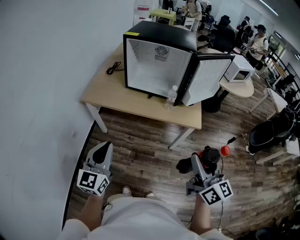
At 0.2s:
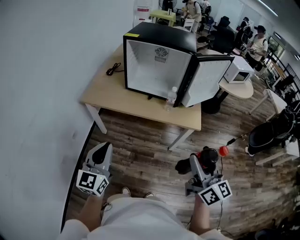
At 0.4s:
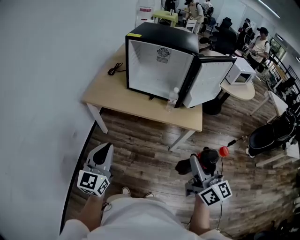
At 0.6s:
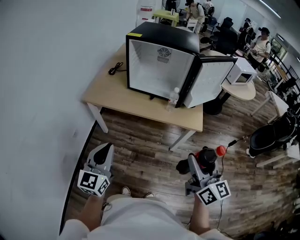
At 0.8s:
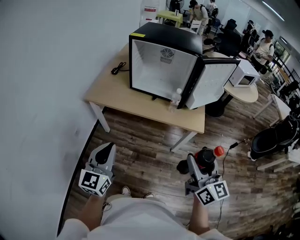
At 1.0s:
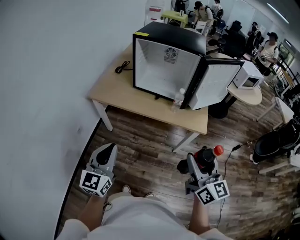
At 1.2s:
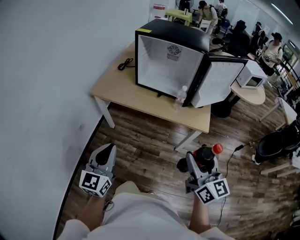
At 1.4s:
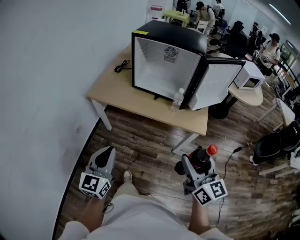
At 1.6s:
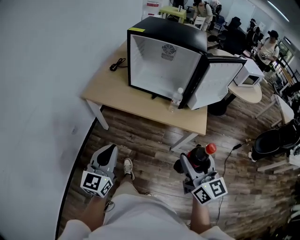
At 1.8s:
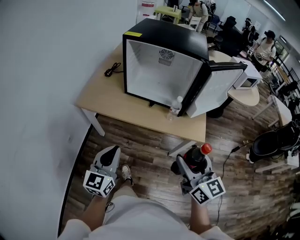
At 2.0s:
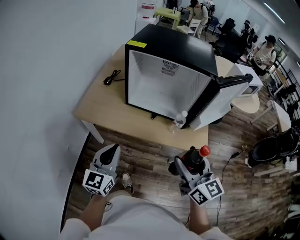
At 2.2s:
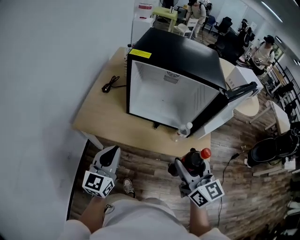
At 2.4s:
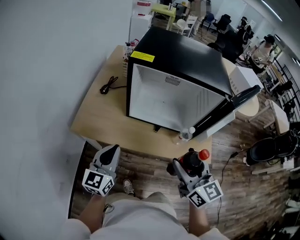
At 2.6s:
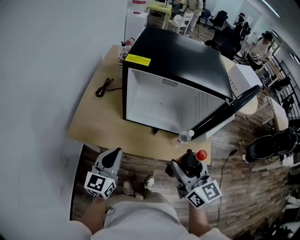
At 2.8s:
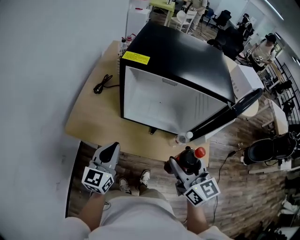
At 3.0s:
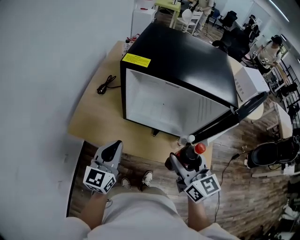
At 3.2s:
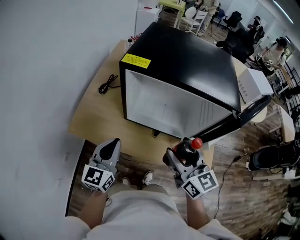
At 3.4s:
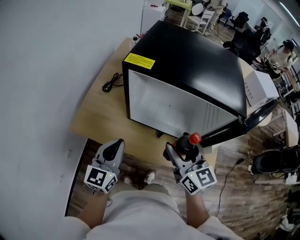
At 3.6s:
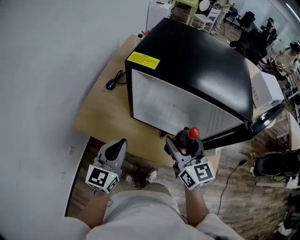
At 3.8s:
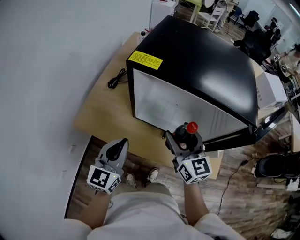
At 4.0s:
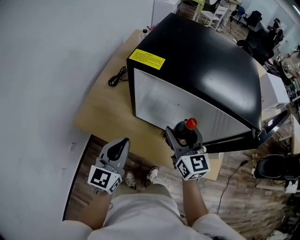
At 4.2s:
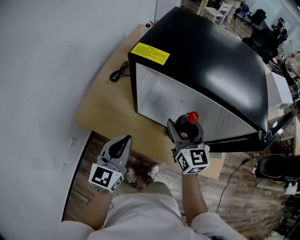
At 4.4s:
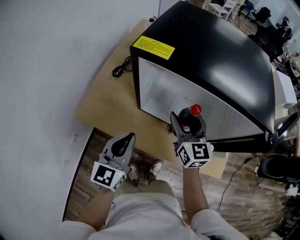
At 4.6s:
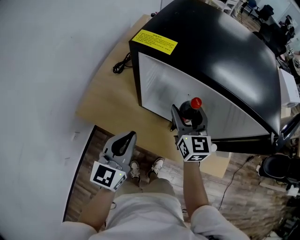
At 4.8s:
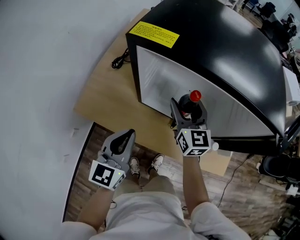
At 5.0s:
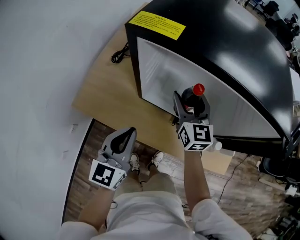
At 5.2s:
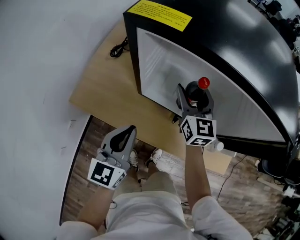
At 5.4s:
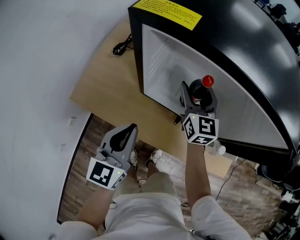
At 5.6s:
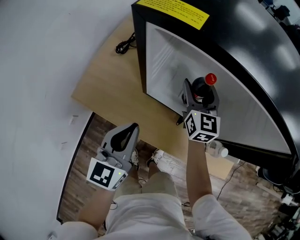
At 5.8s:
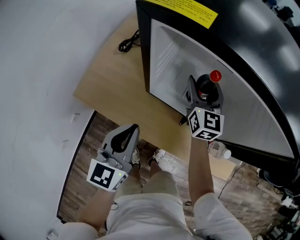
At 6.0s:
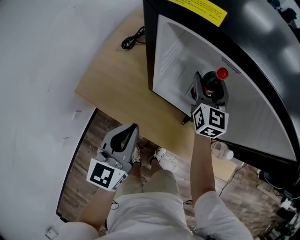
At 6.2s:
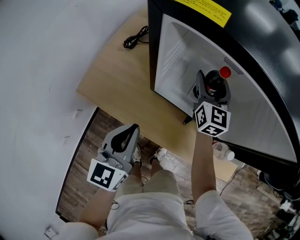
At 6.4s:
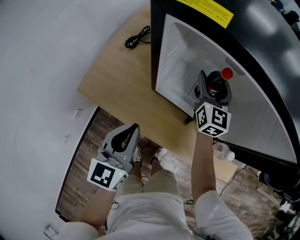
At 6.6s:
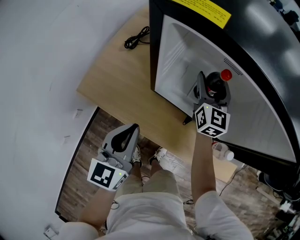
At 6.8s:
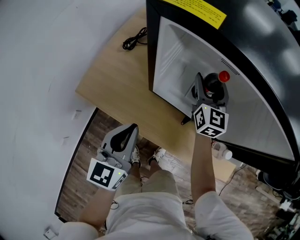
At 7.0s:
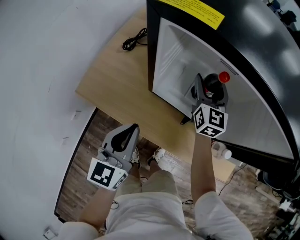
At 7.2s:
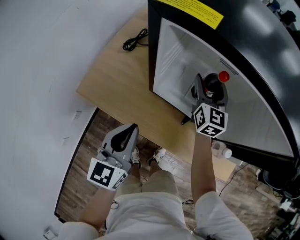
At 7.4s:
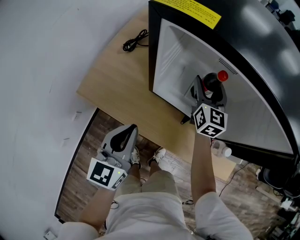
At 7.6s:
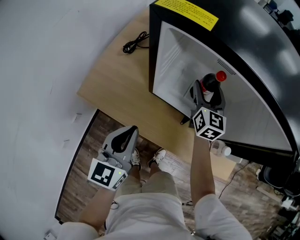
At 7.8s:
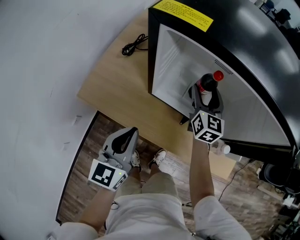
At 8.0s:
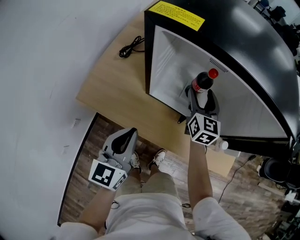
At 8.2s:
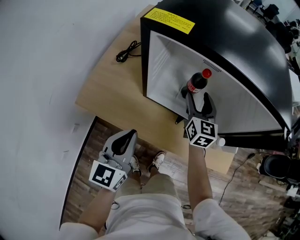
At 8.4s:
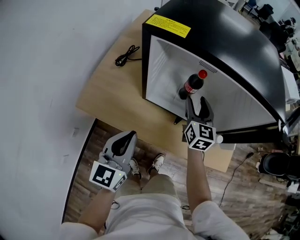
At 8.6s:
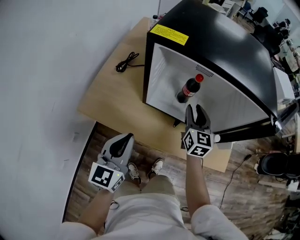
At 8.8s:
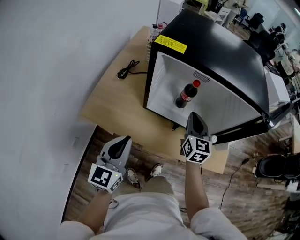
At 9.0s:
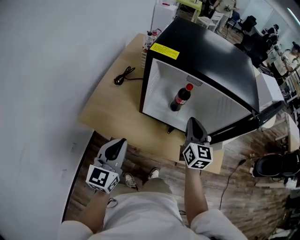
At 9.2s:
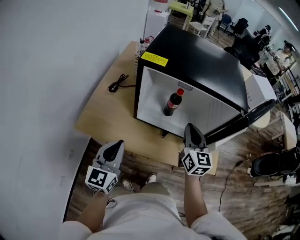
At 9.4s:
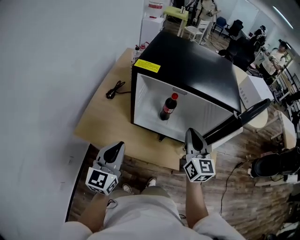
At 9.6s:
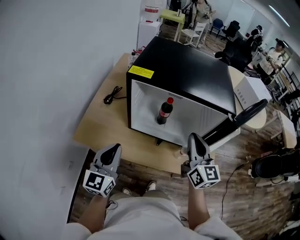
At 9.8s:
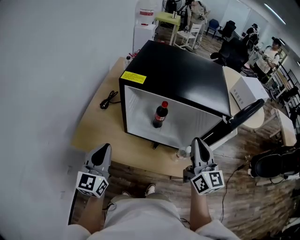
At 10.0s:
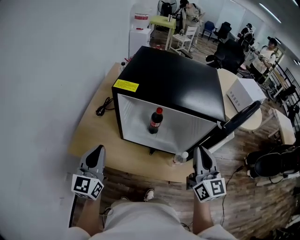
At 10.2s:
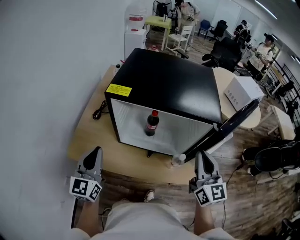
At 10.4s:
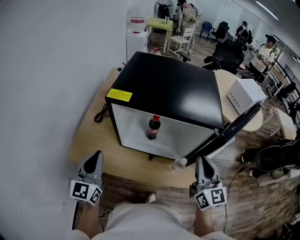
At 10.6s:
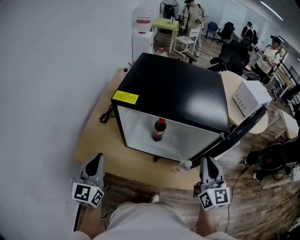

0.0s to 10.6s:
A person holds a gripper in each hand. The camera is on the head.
0.0s to 1.6s: The right gripper shifts approximately 5 cm forward. Meanwhile the left gripper moves some 5 cm.
1.6s to 3.0s: Both grippers move forward, approximately 35 cm.
3.0s to 4.6s: The right gripper travels forward and downward by some 20 cm.
4.6s to 6.0s: The left gripper moves downward, some 5 cm; the right gripper goes some 10 cm forward and downward.
6.0s to 7.6s: The grippers make only small movements.
7.6s to 9.0s: The left gripper is displaced backward and upward by approximately 10 cm, while the right gripper is displaced backward and upward by roughly 20 cm, and closes up.
9.0s to 10.6s: The right gripper goes roughly 20 cm to the right, upward and backward. Meanwhile the left gripper travels upward and forward by roughly 10 cm.

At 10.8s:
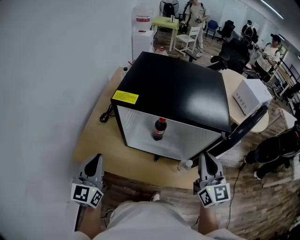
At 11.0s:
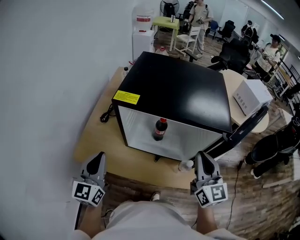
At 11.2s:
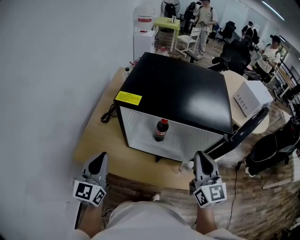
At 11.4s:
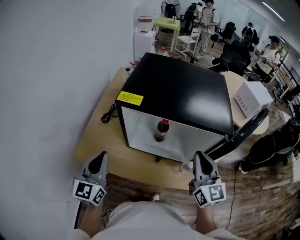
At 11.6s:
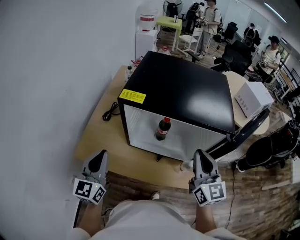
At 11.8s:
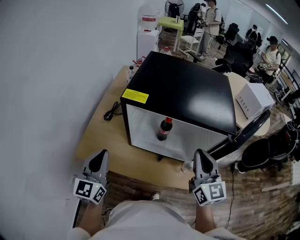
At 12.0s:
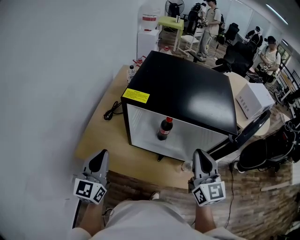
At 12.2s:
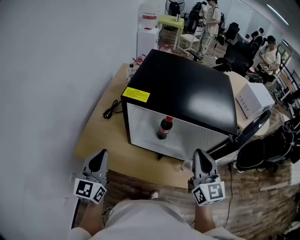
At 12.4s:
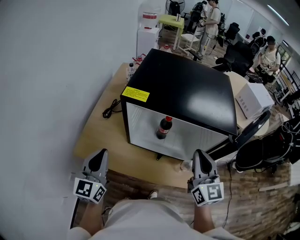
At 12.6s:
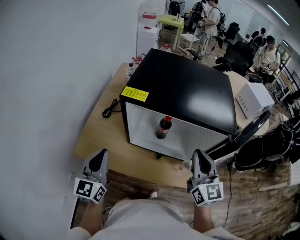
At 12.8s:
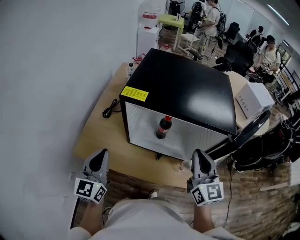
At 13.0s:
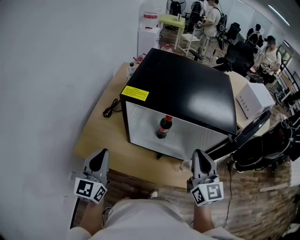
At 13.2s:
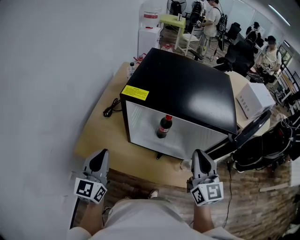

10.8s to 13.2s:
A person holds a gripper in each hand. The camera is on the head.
10.8s to 12.0s: The right gripper is displaced to the left by roughly 5 cm.
12.0s to 13.2s: Both grippers stay about where they are.

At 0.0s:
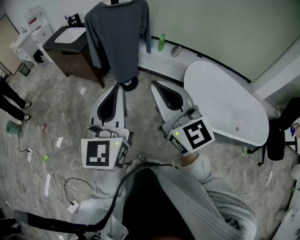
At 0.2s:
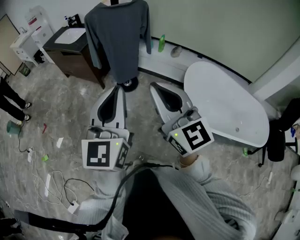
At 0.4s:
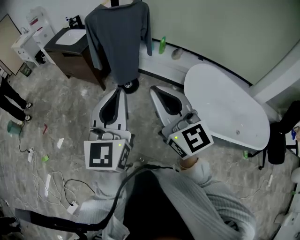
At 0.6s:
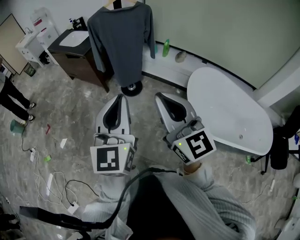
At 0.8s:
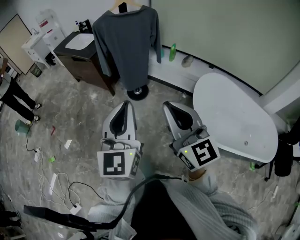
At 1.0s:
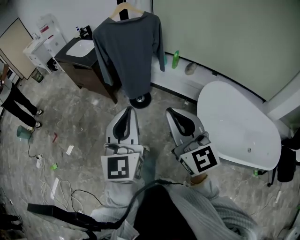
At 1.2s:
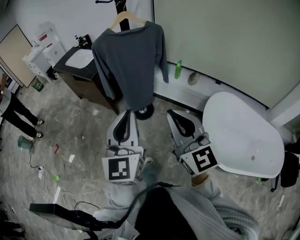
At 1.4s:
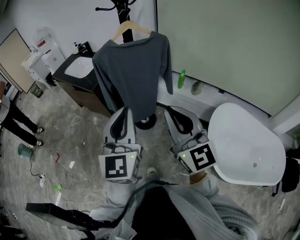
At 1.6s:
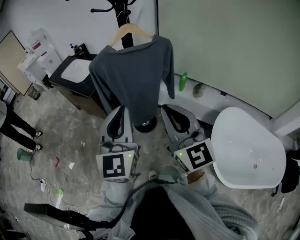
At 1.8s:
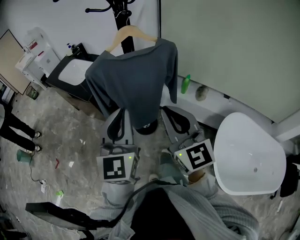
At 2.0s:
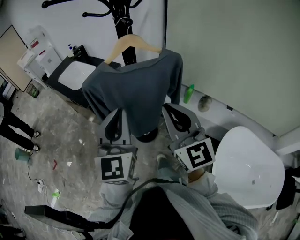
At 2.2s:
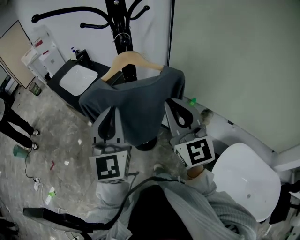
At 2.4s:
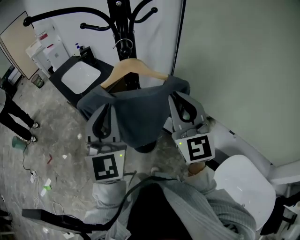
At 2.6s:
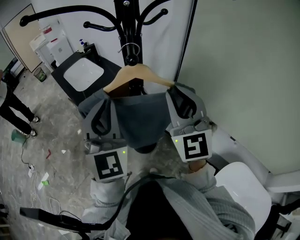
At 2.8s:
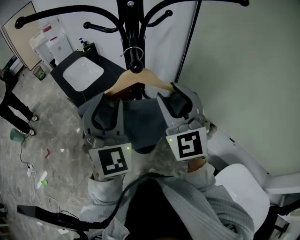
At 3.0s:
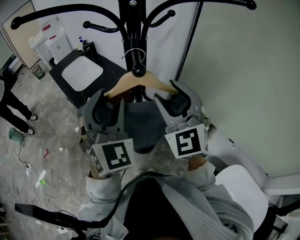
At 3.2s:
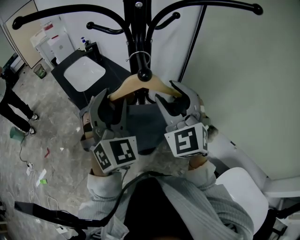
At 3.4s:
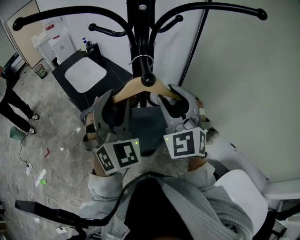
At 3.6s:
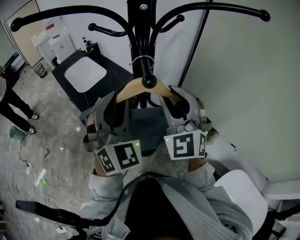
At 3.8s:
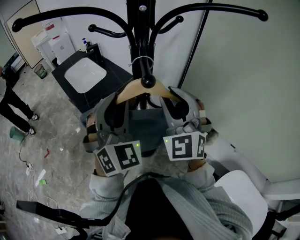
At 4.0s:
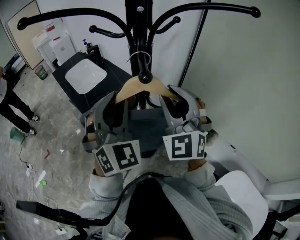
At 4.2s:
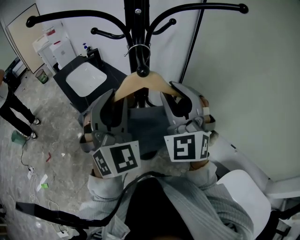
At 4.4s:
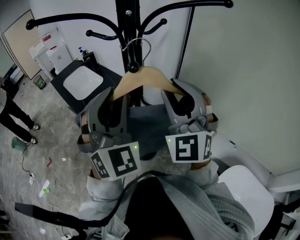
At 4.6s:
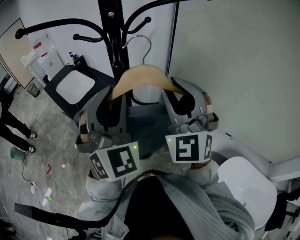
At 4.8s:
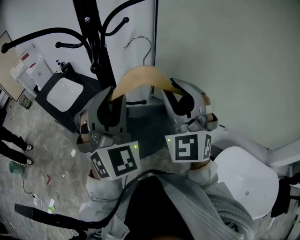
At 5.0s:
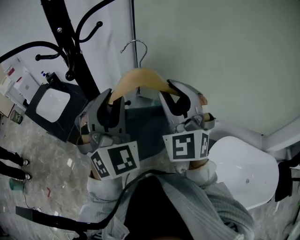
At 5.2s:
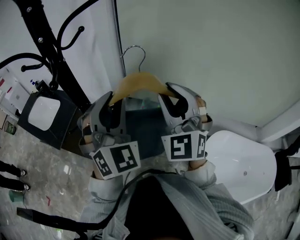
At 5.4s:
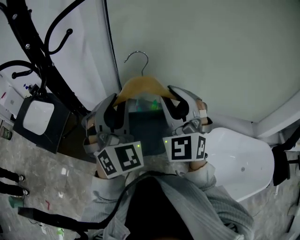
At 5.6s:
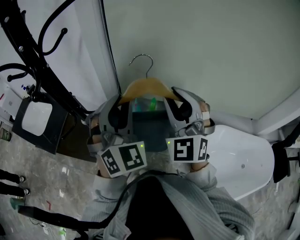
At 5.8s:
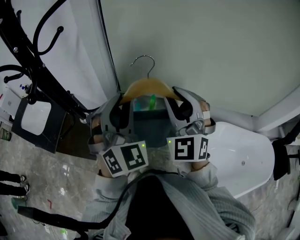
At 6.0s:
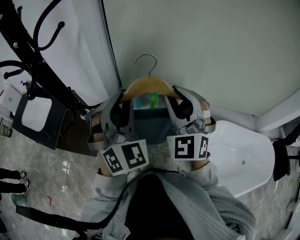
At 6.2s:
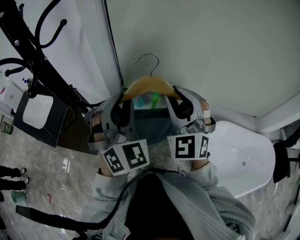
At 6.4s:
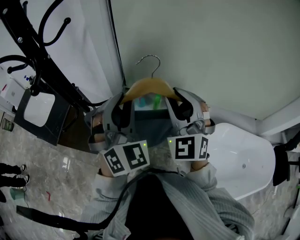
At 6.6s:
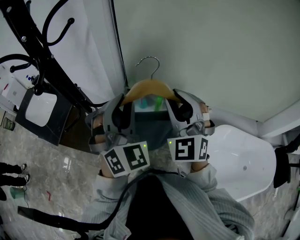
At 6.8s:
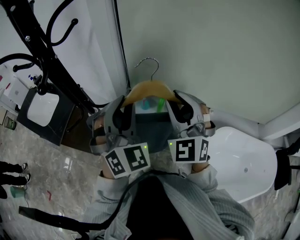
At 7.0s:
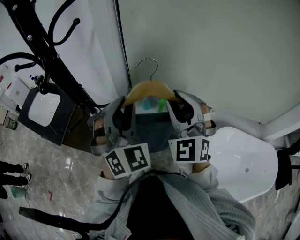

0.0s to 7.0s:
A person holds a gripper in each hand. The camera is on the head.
0.0s to 1.4s: Both grippers move forward, about 30 cm.
1.4s to 2.8s: The pair of grippers is taken forward, approximately 40 cm. The left gripper rotates roughly 40 degrees, and opens. The right gripper turns by approximately 30 degrees, and opens up.
2.8s to 4.2s: The grippers make only small movements.
4.2s to 5.6s: The right gripper shifts by about 25 cm, and turns by some 30 degrees. Meanwhile the left gripper changes place by about 25 cm, and turns by approximately 30 degrees.
5.6s to 7.0s: There are only small adjustments of the grippers.

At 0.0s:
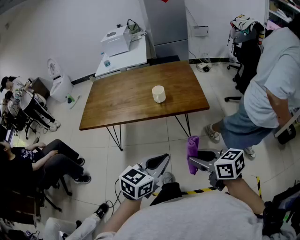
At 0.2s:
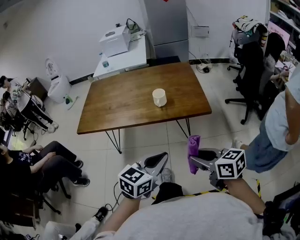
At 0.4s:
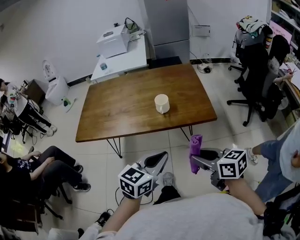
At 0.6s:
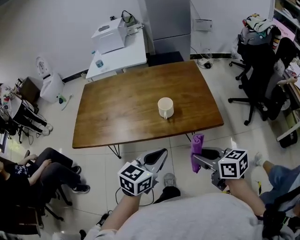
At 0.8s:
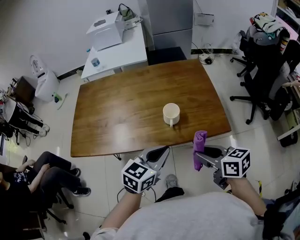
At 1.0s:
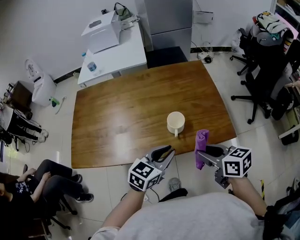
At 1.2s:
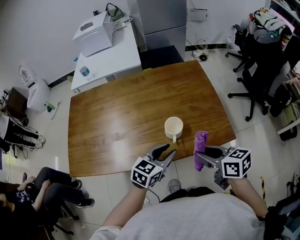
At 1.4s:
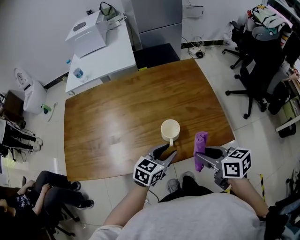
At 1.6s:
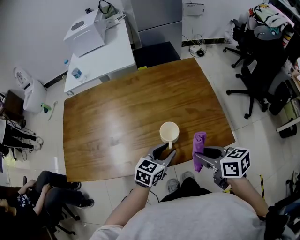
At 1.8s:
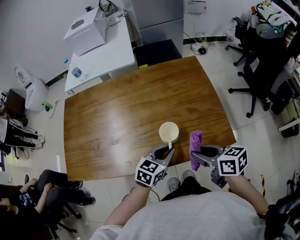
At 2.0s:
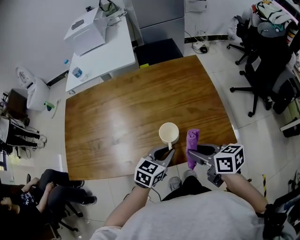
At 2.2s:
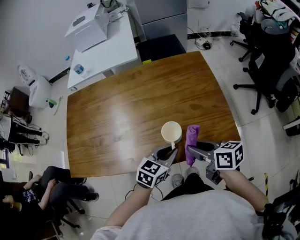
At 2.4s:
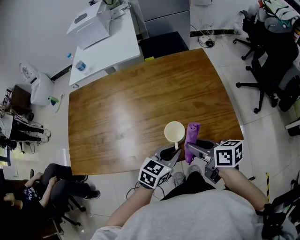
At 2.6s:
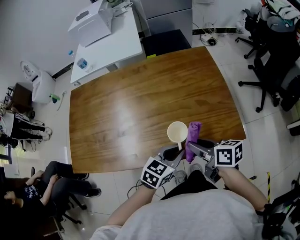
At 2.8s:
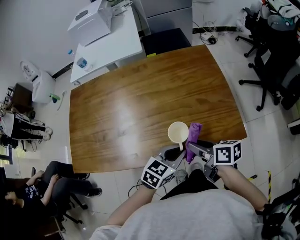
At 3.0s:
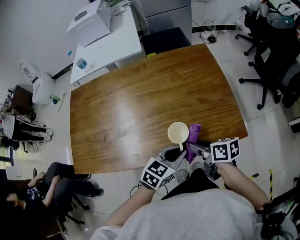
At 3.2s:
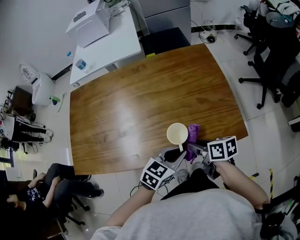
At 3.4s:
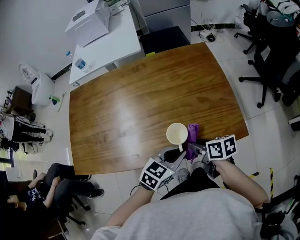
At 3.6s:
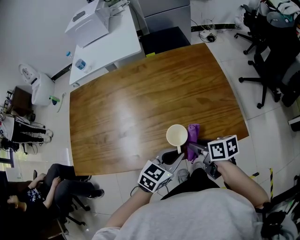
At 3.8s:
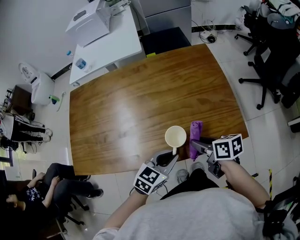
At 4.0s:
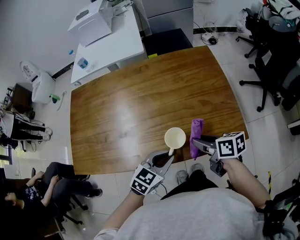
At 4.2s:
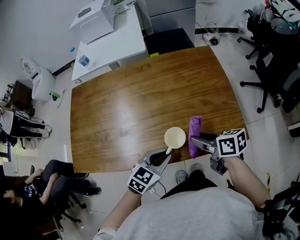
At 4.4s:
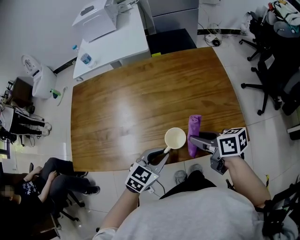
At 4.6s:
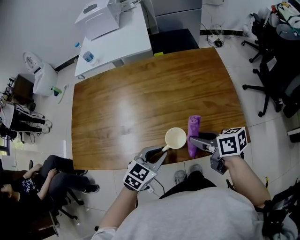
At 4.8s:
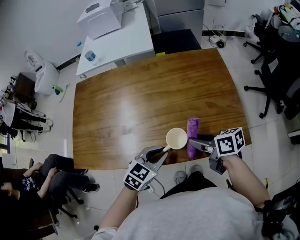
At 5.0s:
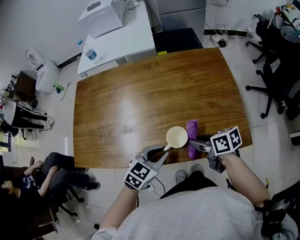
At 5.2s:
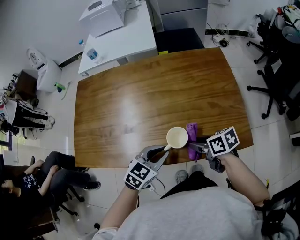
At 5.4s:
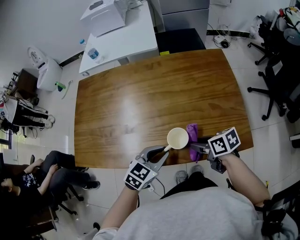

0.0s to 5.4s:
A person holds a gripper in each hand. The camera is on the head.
0.0s to 1.4s: Both grippers move forward, approximately 40 cm. The left gripper opens up.
1.4s to 2.8s: The left gripper closes its fingers, while the right gripper moves downward, some 5 cm, and changes its angle by roughly 20 degrees.
2.8s to 4.0s: The left gripper heads to the left, covering approximately 5 cm.
4.0s to 5.4s: The right gripper shifts by roughly 5 cm.
